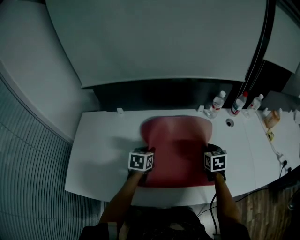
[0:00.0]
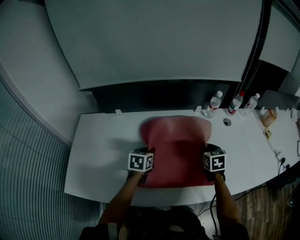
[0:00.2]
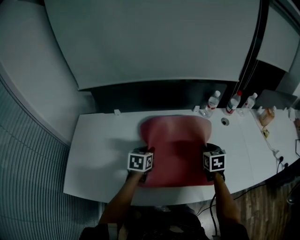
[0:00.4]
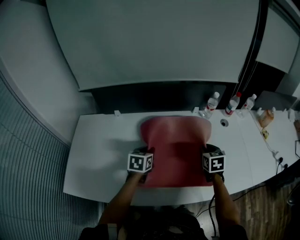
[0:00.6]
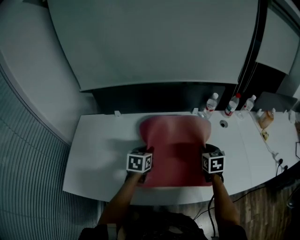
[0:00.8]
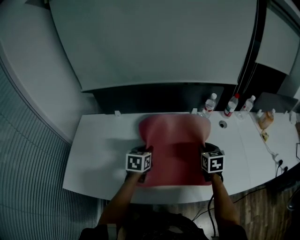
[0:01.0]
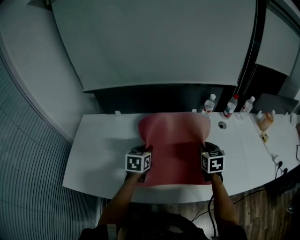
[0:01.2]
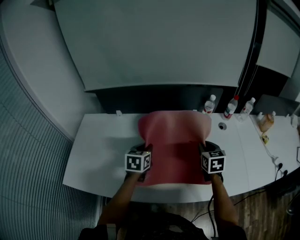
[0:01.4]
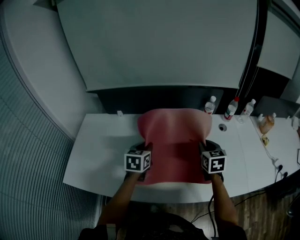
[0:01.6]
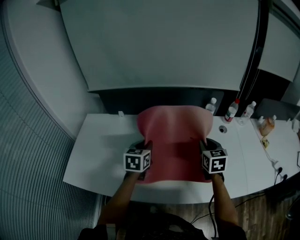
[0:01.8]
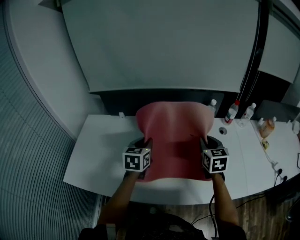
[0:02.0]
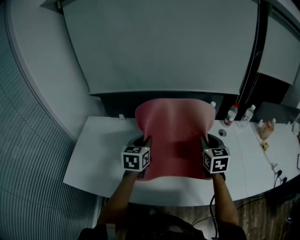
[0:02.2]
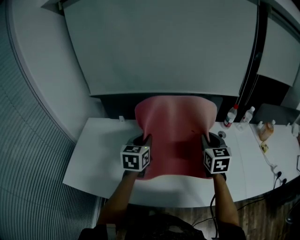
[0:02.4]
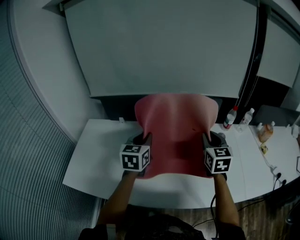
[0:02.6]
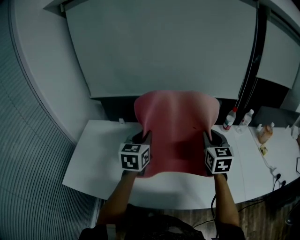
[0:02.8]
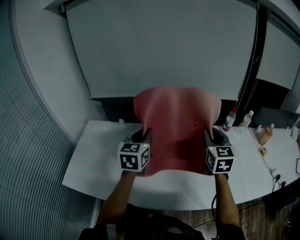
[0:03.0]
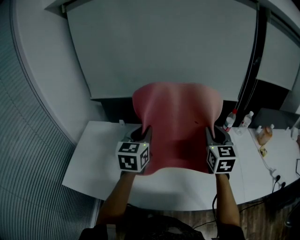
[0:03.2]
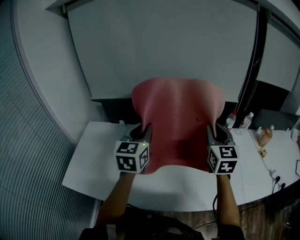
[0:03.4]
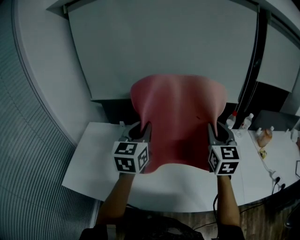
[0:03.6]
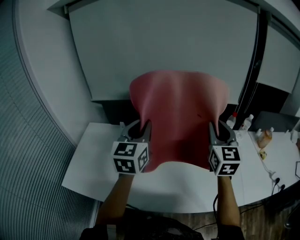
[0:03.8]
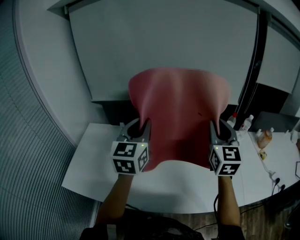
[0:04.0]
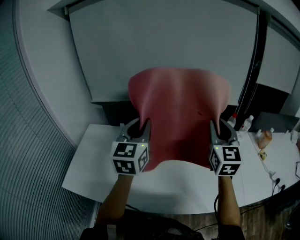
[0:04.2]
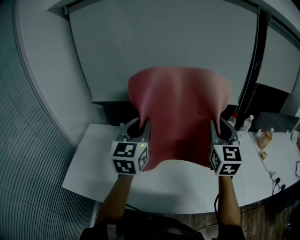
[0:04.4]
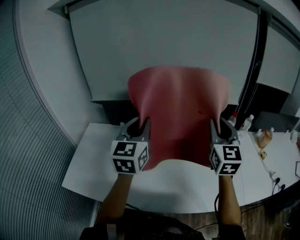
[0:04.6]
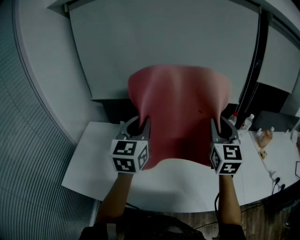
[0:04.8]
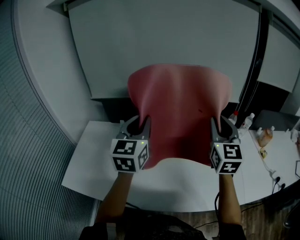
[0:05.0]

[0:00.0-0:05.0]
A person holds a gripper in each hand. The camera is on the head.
0:00.0 to 0:01.6: Both grippers travel together upward, approximately 10 cm.
0:01.6 to 0:03.4: Both grippers move upward, some 20 cm. The left gripper rotates about 30 degrees. Meanwhile the right gripper swivels some 30 degrees.
0:03.4 to 0:05.0: The right gripper heads upward, covering some 5 cm.

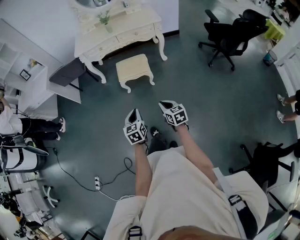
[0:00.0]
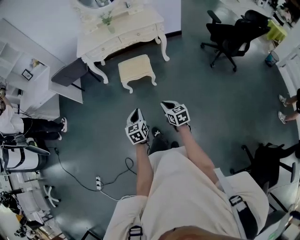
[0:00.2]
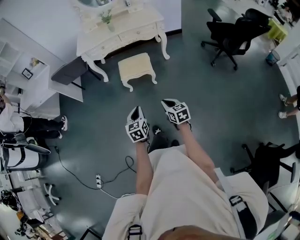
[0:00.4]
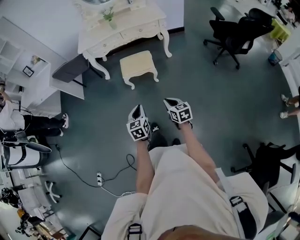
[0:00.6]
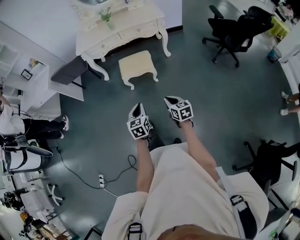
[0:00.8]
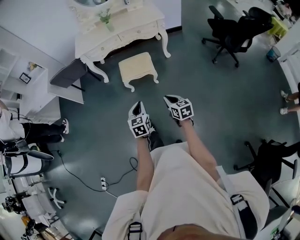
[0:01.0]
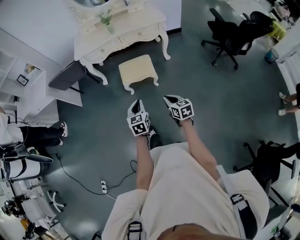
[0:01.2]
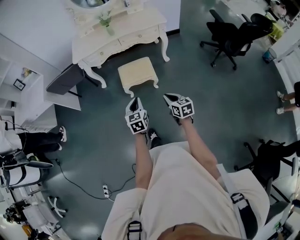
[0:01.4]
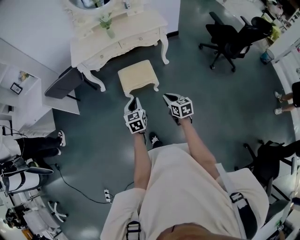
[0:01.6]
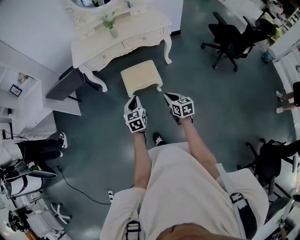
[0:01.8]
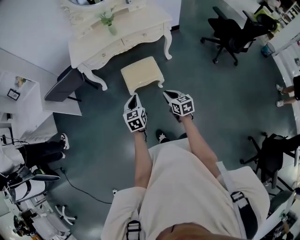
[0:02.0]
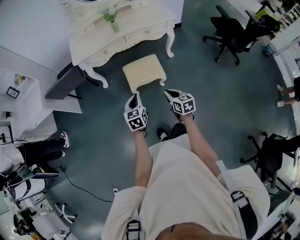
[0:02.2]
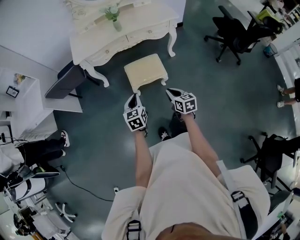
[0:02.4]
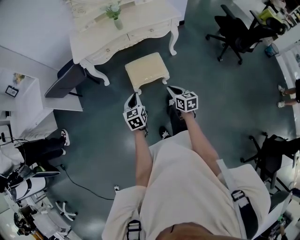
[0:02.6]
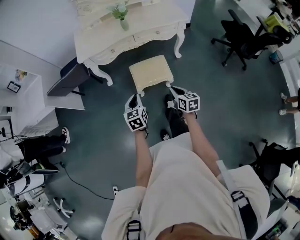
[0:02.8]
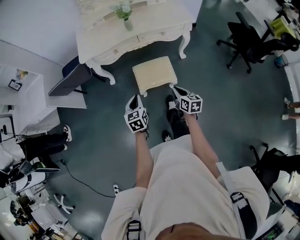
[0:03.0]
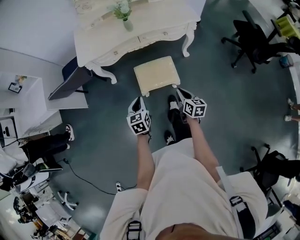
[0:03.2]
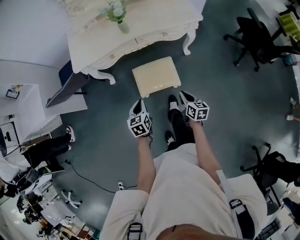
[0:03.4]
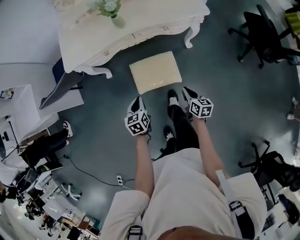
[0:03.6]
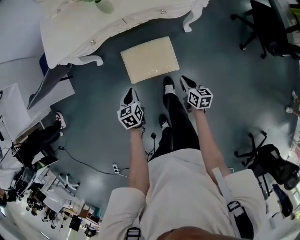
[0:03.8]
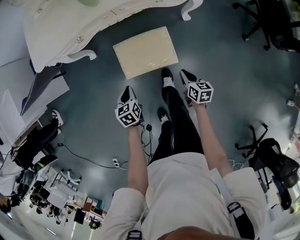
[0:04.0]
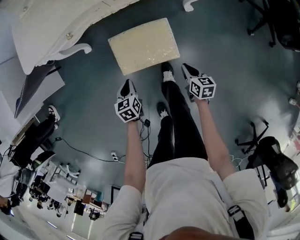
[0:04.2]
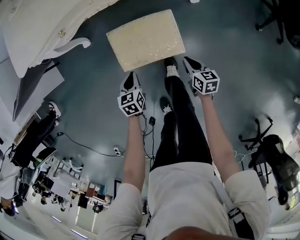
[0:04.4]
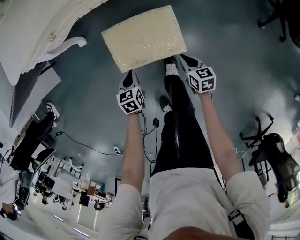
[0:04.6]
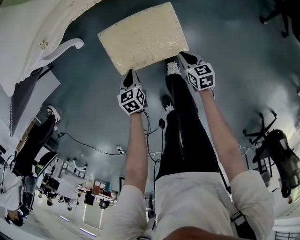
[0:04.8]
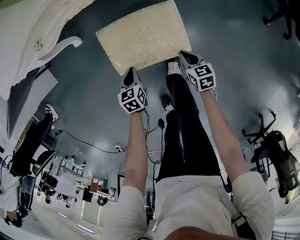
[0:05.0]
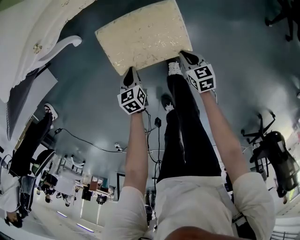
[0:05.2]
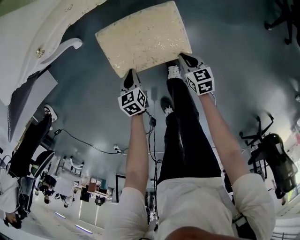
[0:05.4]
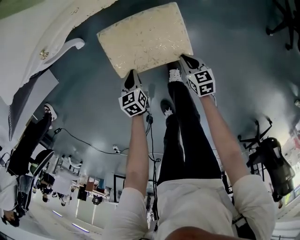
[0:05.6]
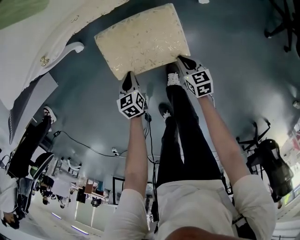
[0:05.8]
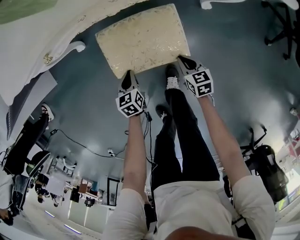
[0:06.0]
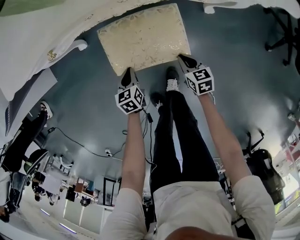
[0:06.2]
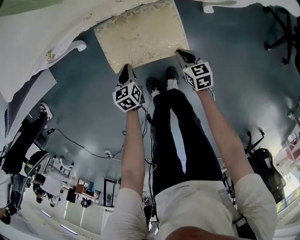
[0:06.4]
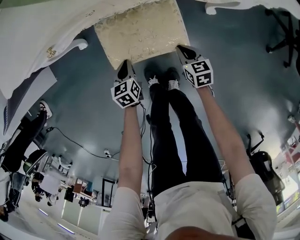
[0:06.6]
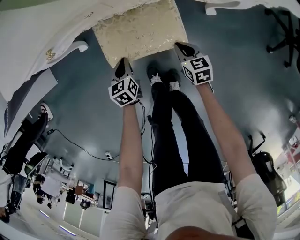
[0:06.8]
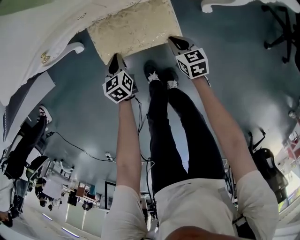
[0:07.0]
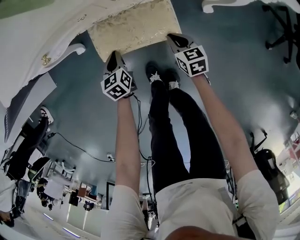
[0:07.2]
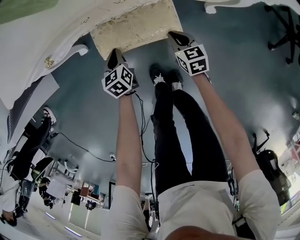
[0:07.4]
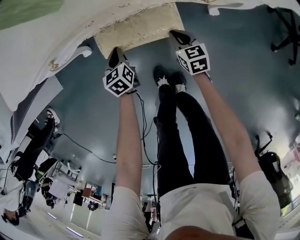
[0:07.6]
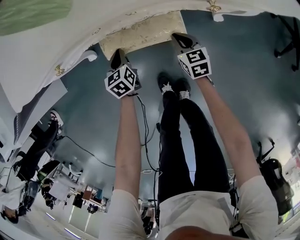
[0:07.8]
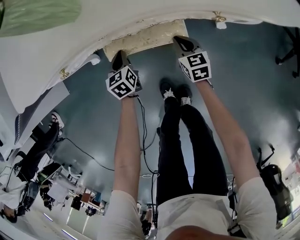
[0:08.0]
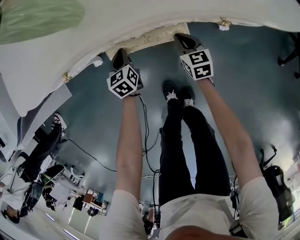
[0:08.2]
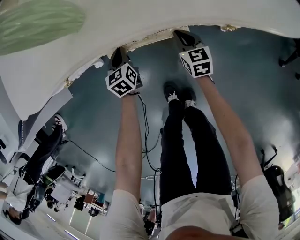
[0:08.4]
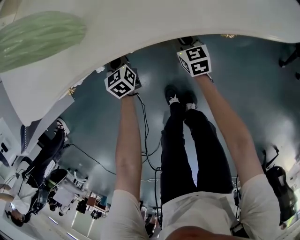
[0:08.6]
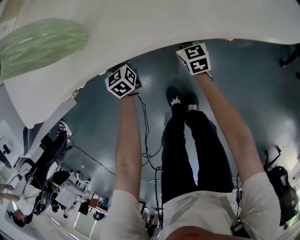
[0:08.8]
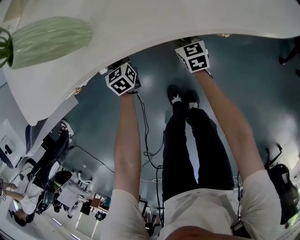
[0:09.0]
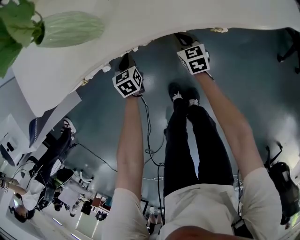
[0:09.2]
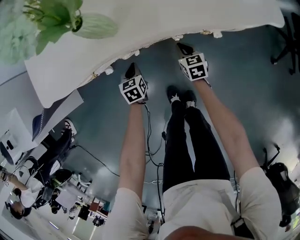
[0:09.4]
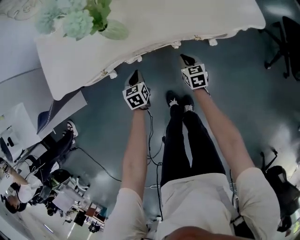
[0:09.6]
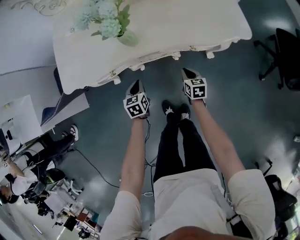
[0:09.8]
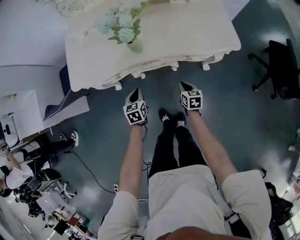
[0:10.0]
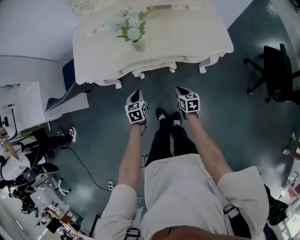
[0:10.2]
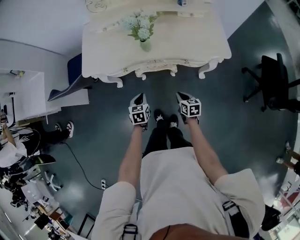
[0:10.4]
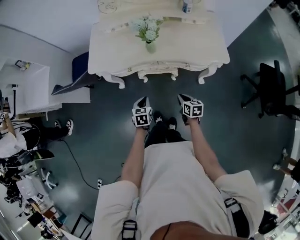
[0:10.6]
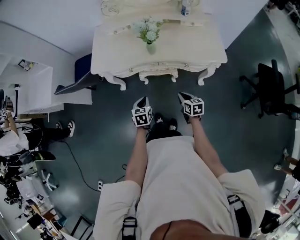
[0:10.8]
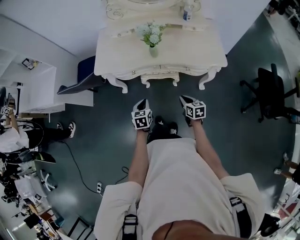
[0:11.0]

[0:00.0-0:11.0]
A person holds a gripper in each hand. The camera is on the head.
0:00.0 to 0:01.6: The two grippers go about 25 cm forward.
0:01.6 to 0:03.2: The grippers both shift forward by roughly 25 cm.
0:03.2 to 0:04.8: Both grippers travel together downward, roughly 50 cm. The left gripper rotates some 20 degrees. The right gripper swivels about 30 degrees.
0:04.8 to 0:06.2: The two grippers go roughly 10 cm forward.
0:06.2 to 0:07.8: The two grippers go approximately 15 cm forward.
0:07.8 to 0:09.4: The grippers both shift upward by some 10 cm. The left gripper goes forward and returns, some 10 cm each way.
0:09.4 to 0:11.0: The grippers both shift upward and backward by some 40 cm.

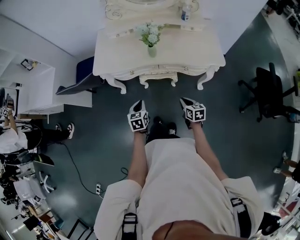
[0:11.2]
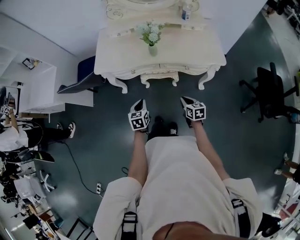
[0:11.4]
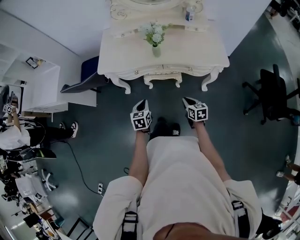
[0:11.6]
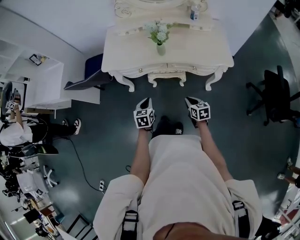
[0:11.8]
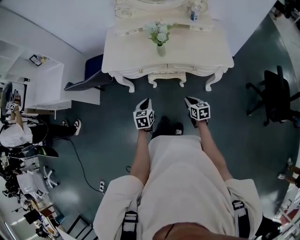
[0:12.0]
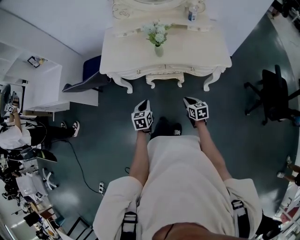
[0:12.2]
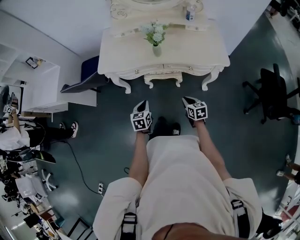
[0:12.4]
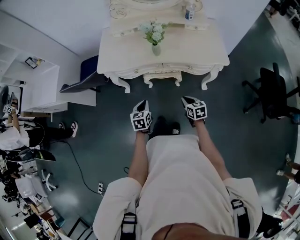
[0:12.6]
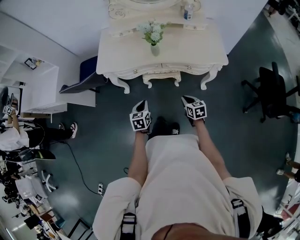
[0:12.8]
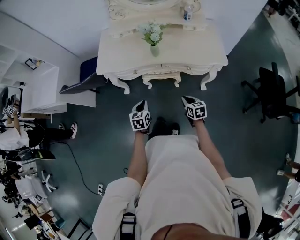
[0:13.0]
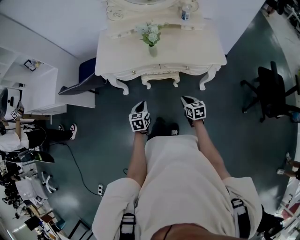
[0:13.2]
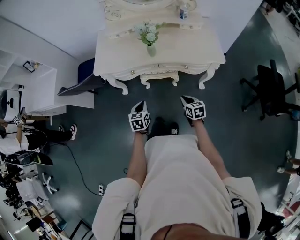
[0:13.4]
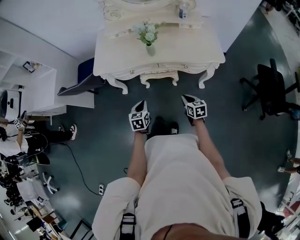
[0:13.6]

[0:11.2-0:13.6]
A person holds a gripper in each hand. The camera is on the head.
0:11.2 to 0:13.6: The grippers stay close to where they were, moving slightly.

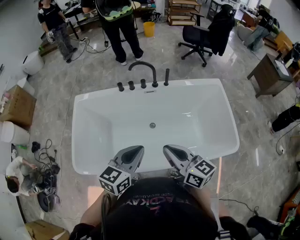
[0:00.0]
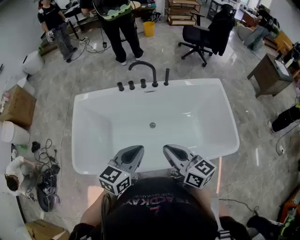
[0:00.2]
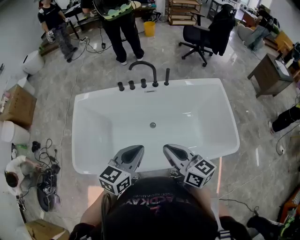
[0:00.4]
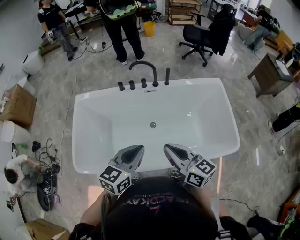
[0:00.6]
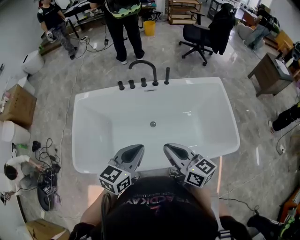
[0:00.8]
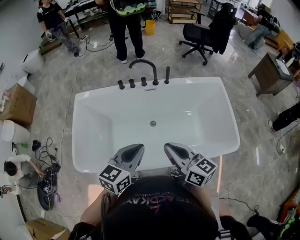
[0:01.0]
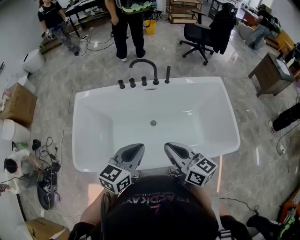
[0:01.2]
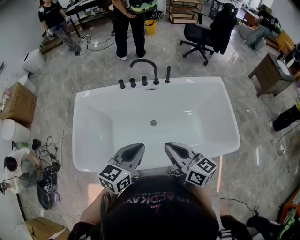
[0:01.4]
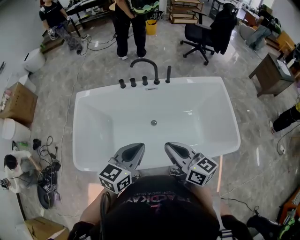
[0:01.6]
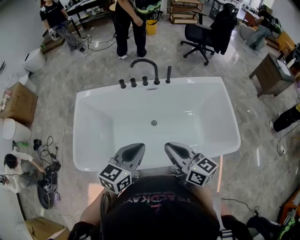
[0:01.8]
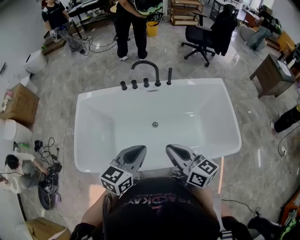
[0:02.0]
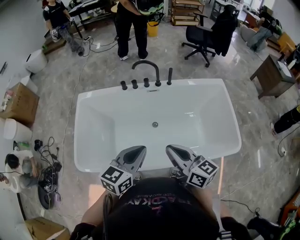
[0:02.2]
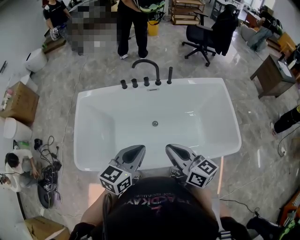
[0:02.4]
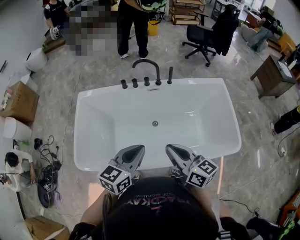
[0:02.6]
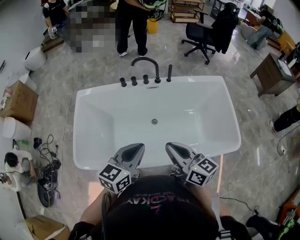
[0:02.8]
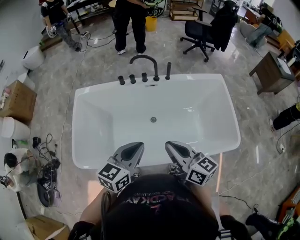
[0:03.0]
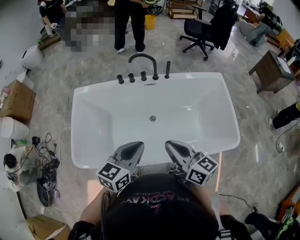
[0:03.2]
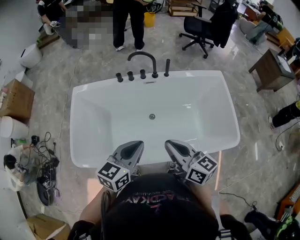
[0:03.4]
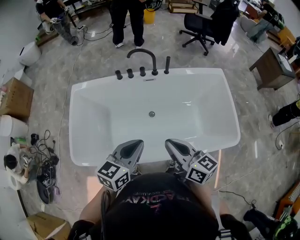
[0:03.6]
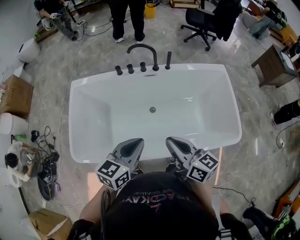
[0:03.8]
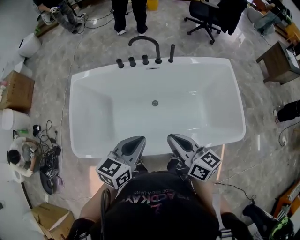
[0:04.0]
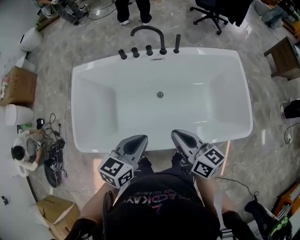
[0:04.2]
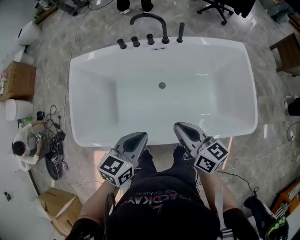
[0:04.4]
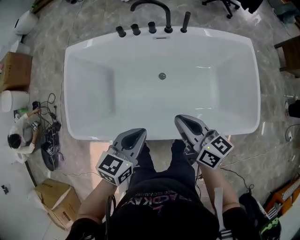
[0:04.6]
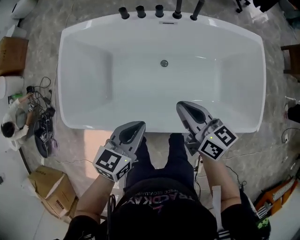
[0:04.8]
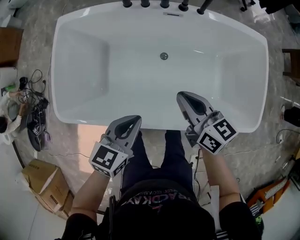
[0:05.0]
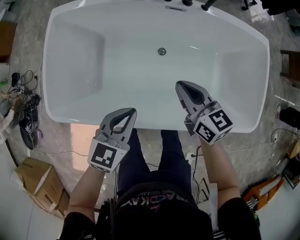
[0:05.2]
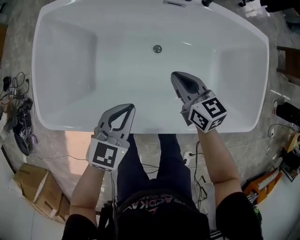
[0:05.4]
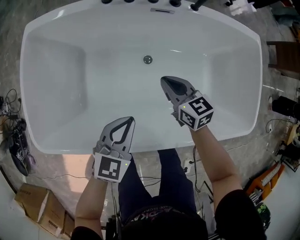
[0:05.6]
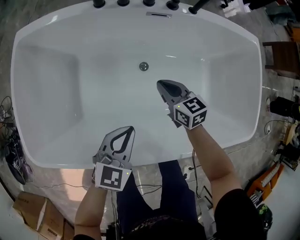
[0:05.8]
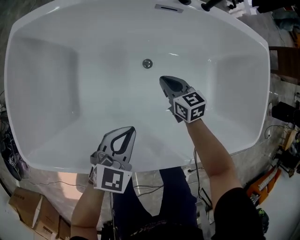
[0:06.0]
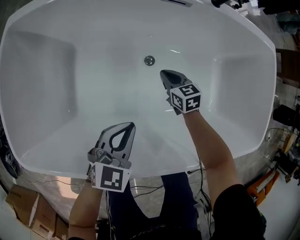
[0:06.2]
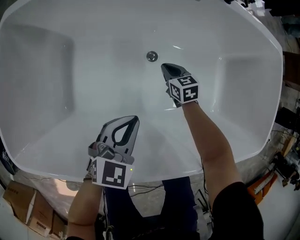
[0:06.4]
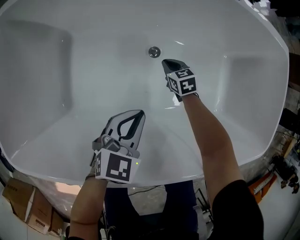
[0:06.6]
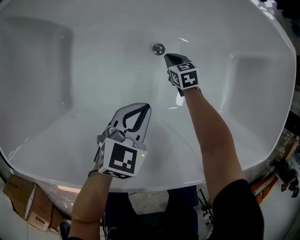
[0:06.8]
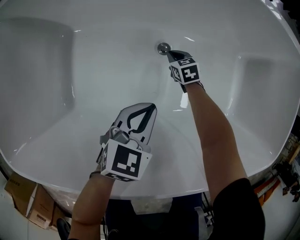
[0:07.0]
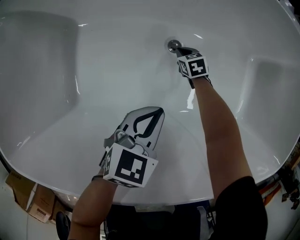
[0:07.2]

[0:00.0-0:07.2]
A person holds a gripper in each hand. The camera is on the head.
0:00.0 to 0:02.8: The two grippers keep their place.
0:02.8 to 0:04.4: The two grippers go approximately 5 cm downward.
0:04.4 to 0:05.8: The right gripper shifts roughly 30 cm downward and forward, and turns by approximately 30 degrees, while the left gripper goes approximately 20 cm downward.
0:05.8 to 0:07.2: The right gripper is displaced downward by roughly 35 cm, and rotates some 30 degrees. Meanwhile the left gripper heads downward, covering approximately 15 cm.
